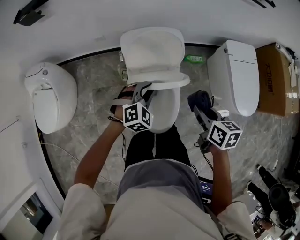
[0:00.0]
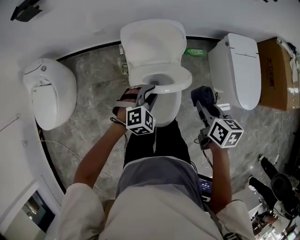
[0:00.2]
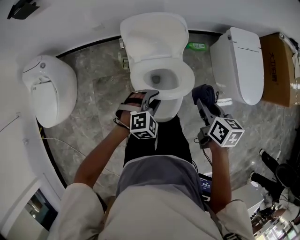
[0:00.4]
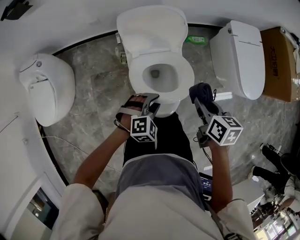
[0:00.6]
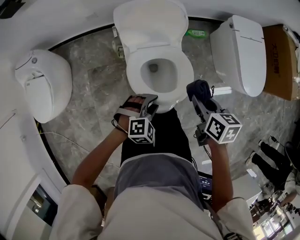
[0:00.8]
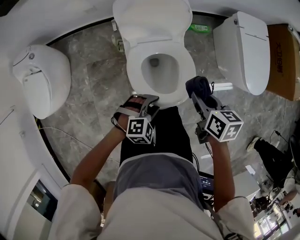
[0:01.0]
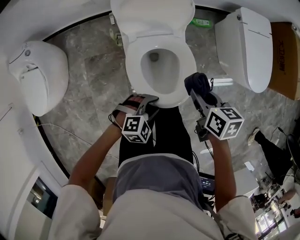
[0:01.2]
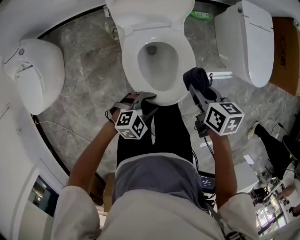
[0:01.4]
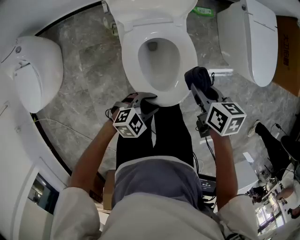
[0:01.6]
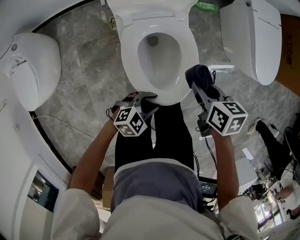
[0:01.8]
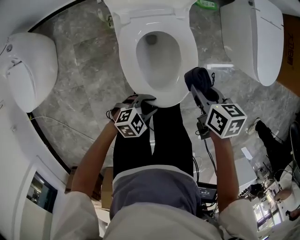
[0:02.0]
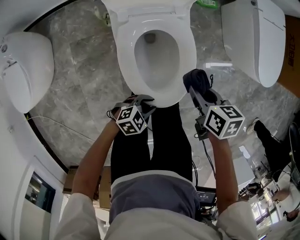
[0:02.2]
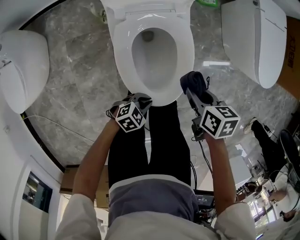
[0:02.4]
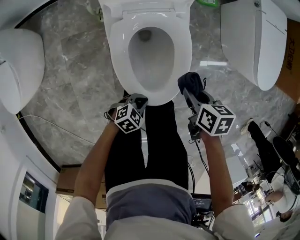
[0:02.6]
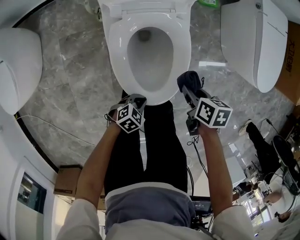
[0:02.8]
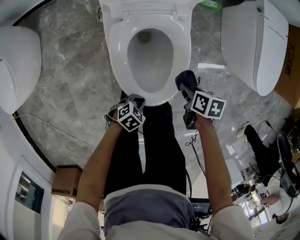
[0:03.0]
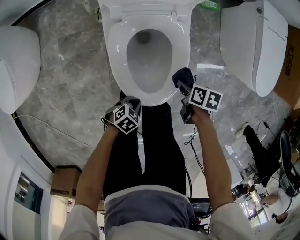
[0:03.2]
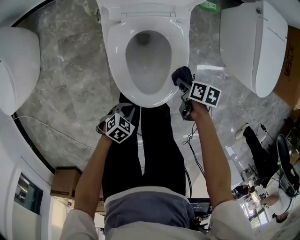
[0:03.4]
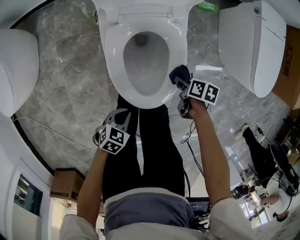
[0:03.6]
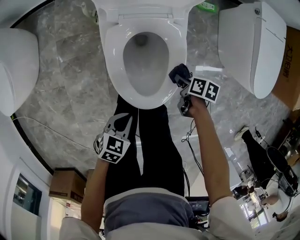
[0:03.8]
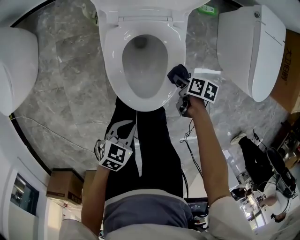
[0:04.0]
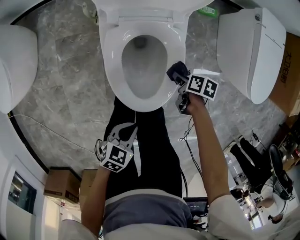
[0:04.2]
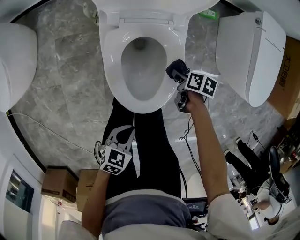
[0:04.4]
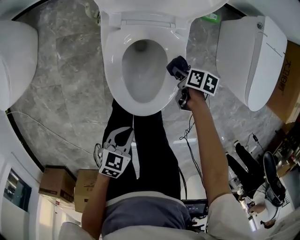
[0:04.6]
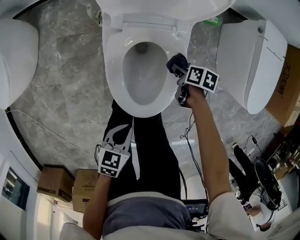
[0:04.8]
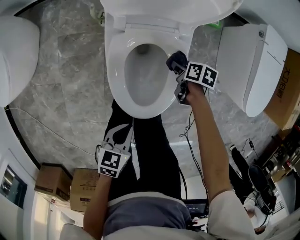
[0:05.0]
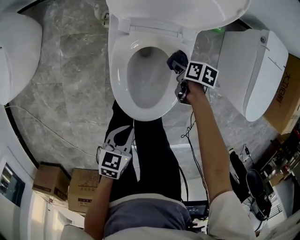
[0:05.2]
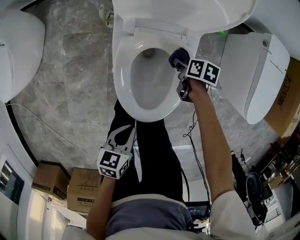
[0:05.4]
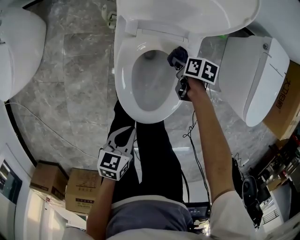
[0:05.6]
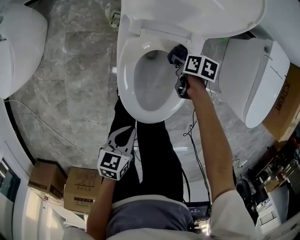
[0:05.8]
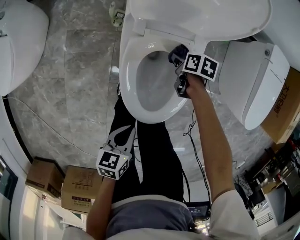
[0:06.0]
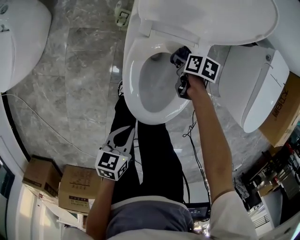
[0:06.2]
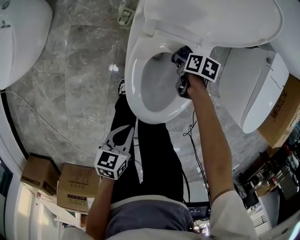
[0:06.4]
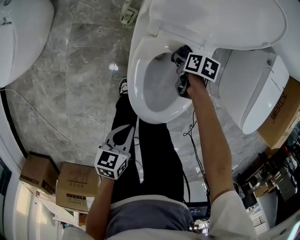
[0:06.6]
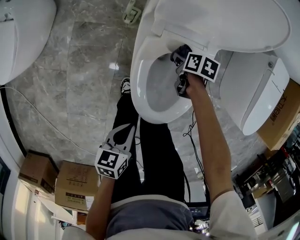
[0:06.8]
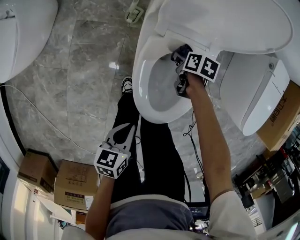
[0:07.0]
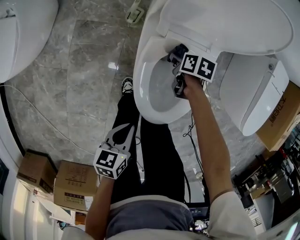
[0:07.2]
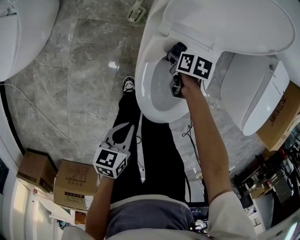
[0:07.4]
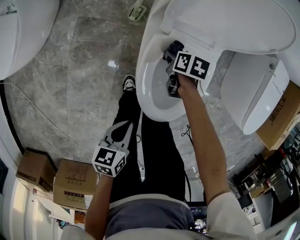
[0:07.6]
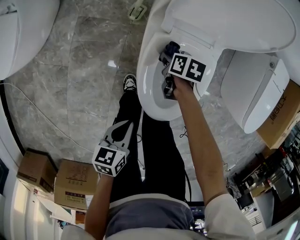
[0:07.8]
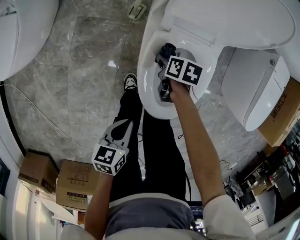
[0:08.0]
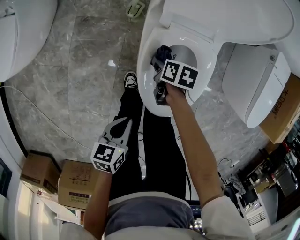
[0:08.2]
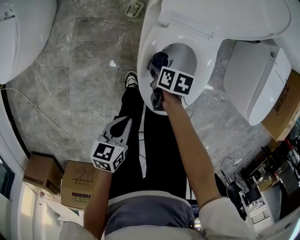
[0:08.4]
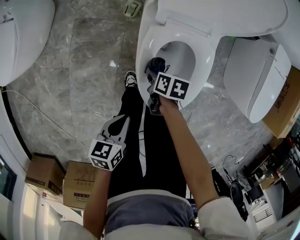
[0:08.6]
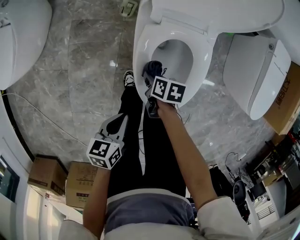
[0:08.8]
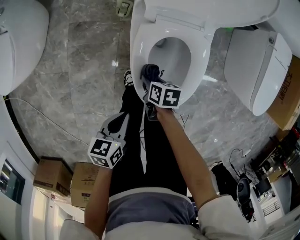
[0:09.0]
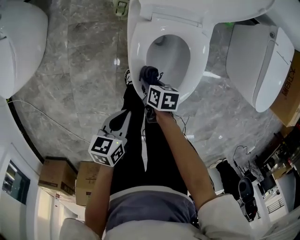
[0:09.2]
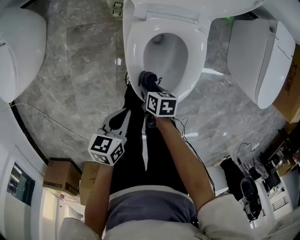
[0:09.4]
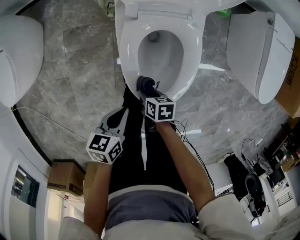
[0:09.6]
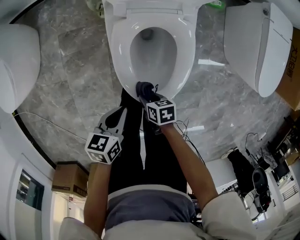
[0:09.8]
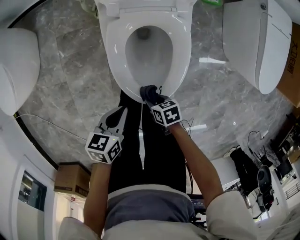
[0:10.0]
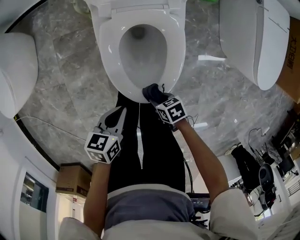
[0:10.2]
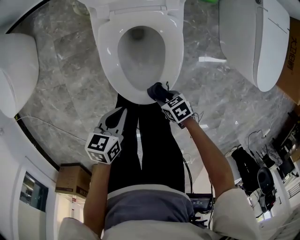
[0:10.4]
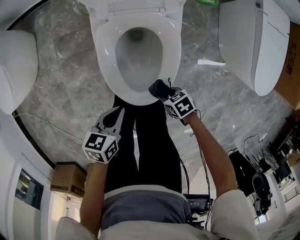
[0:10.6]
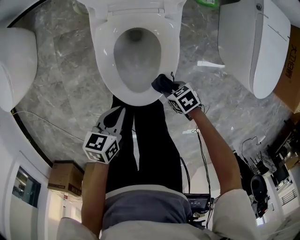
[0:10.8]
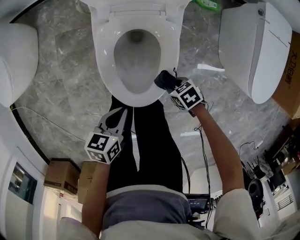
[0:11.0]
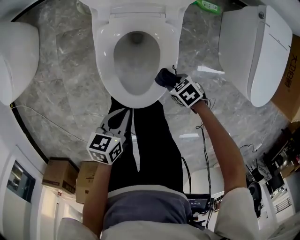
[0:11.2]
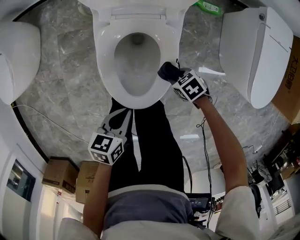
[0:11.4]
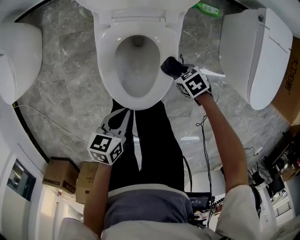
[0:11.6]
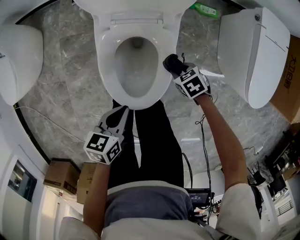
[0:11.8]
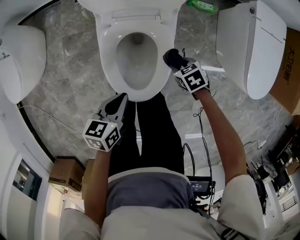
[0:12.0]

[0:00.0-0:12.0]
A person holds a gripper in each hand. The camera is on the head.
0.0 to 1.6 s: The left gripper goes approximately 25 cm backward and downward, and turns by some 40 degrees. The right gripper is displaced downward and backward by roughly 15 cm.
1.6 to 3.0 s: The two grippers go roughly 25 cm downward. The right gripper swivels some 20 degrees. Meanwhile the left gripper changes its angle by about 30 degrees, and closes its fingers.
3.0 to 4.4 s: The left gripper moves upward, some 15 cm, and changes its angle by some 30 degrees. Meanwhile the right gripper moves some 10 cm.
4.4 to 6.0 s: The right gripper moves roughly 15 cm. Meanwhile the left gripper changes place by roughly 10 cm, and rotates roughly 40 degrees.
6.0 to 7.6 s: The right gripper goes roughly 10 cm to the left, while the left gripper moves to the left, roughly 10 cm.
7.6 to 9.0 s: The right gripper moves backward, roughly 15 cm.
9.0 to 10.4 s: The left gripper moves about 10 cm; the right gripper changes place by roughly 20 cm, and changes its angle by roughly 30 degrees.
10.4 to 12.0 s: The left gripper moves approximately 10 cm, while the right gripper ends up some 20 cm from where it was.

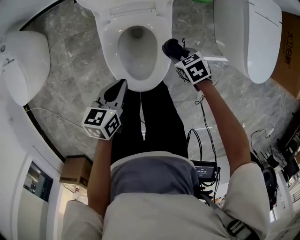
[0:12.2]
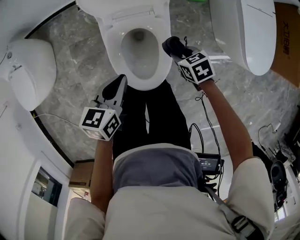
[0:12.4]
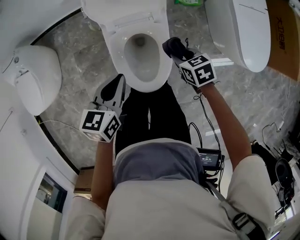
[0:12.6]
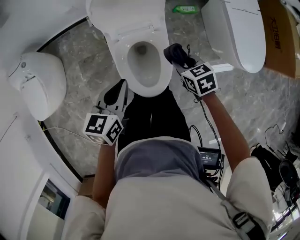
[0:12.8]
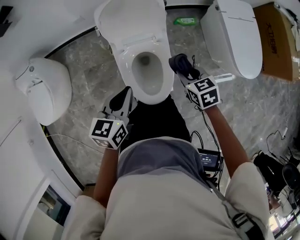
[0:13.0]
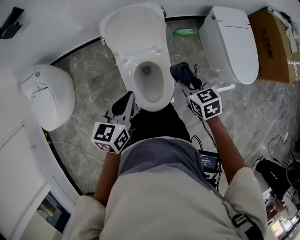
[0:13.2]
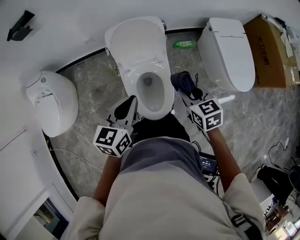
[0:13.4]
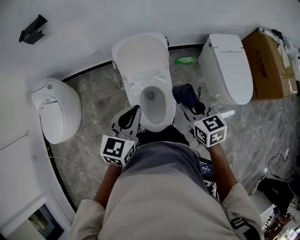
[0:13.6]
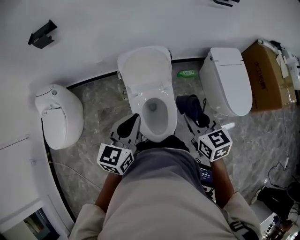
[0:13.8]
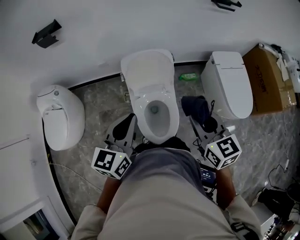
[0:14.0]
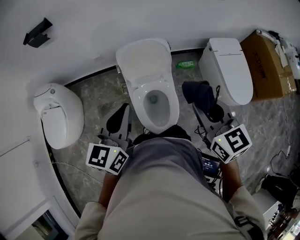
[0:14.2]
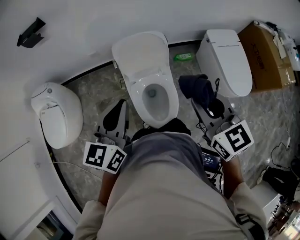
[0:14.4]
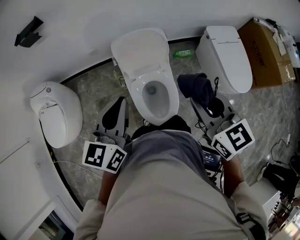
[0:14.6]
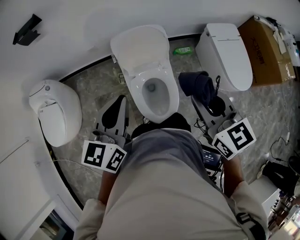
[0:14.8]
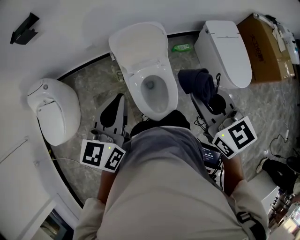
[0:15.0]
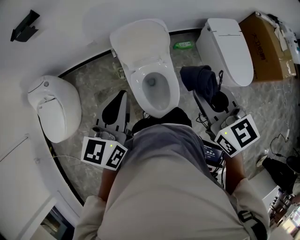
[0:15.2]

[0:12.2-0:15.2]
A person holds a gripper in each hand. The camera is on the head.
12.2 to 13.8 s: Both grippers move upward, about 40 cm. The left gripper swivels some 40 degrees. The right gripper tips its fingers upward by approximately 40 degrees.
13.8 to 15.2 s: The right gripper moves upward, approximately 10 cm. Meanwhile the left gripper heads to the left, covering roughly 5 cm.

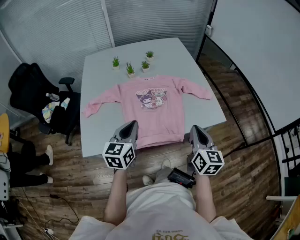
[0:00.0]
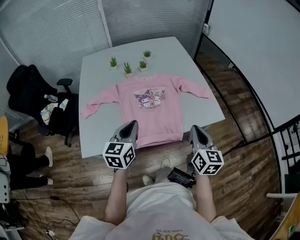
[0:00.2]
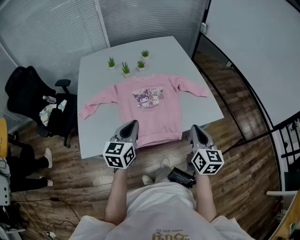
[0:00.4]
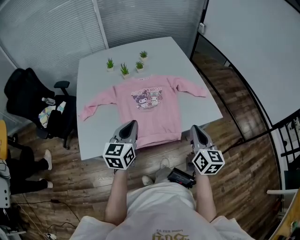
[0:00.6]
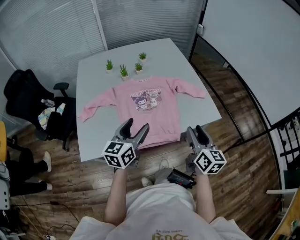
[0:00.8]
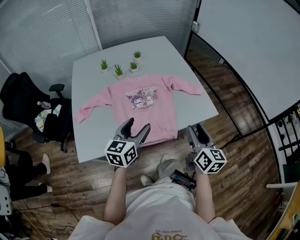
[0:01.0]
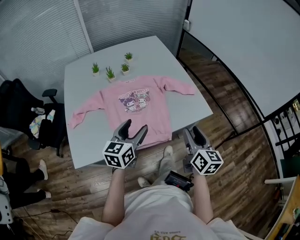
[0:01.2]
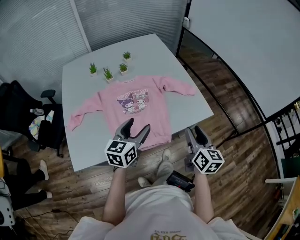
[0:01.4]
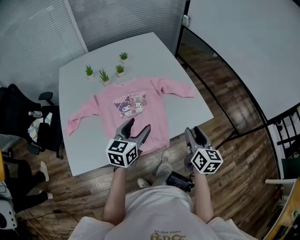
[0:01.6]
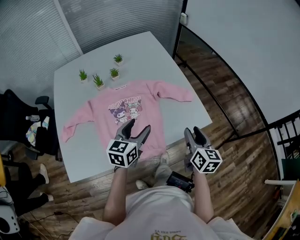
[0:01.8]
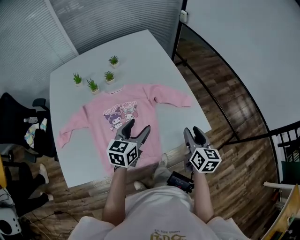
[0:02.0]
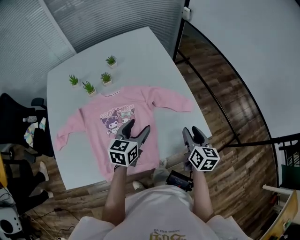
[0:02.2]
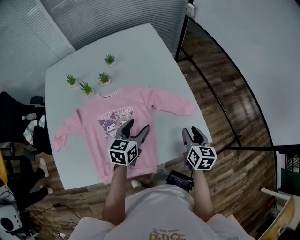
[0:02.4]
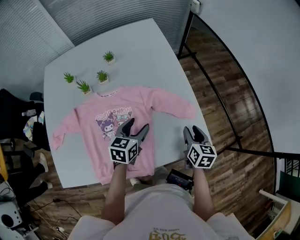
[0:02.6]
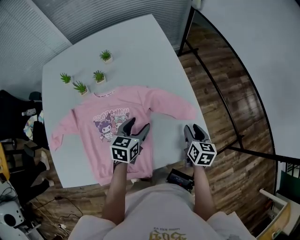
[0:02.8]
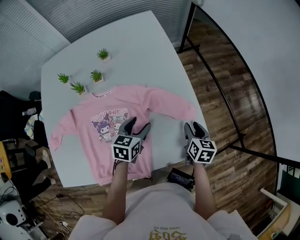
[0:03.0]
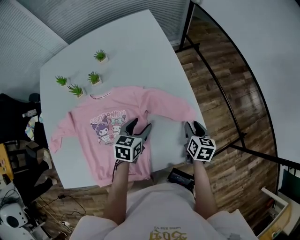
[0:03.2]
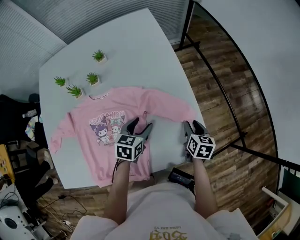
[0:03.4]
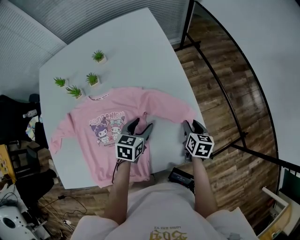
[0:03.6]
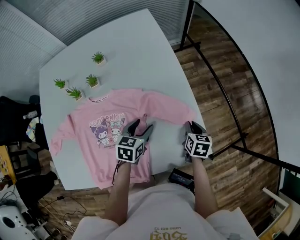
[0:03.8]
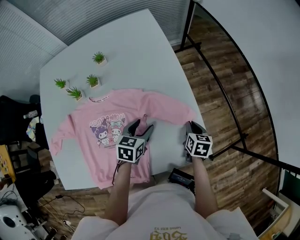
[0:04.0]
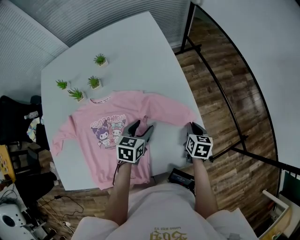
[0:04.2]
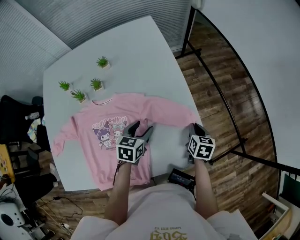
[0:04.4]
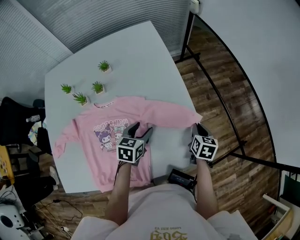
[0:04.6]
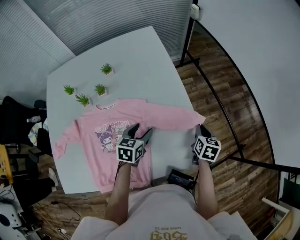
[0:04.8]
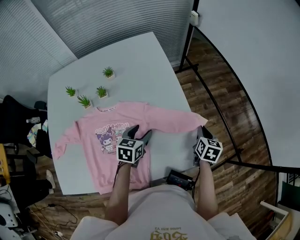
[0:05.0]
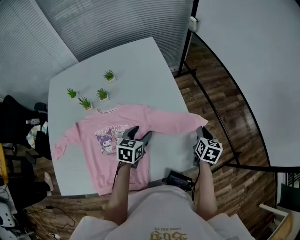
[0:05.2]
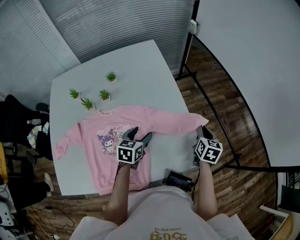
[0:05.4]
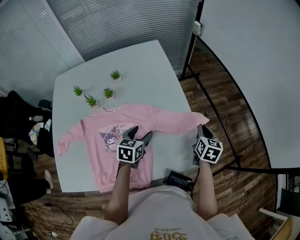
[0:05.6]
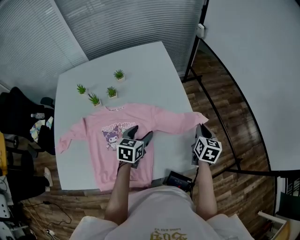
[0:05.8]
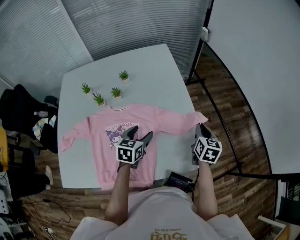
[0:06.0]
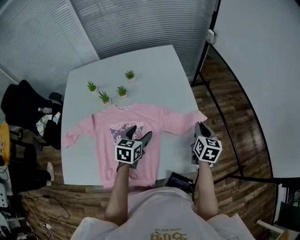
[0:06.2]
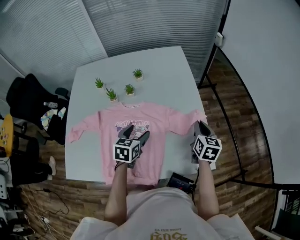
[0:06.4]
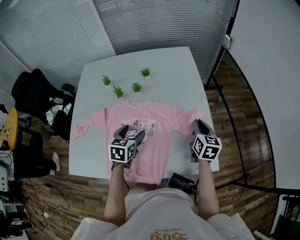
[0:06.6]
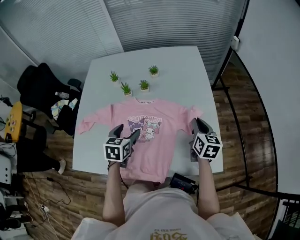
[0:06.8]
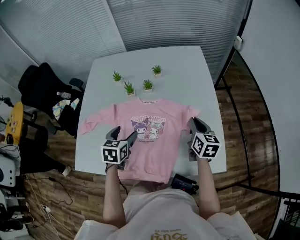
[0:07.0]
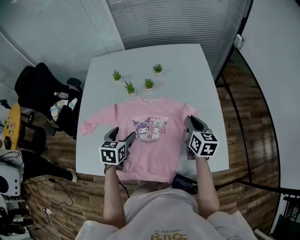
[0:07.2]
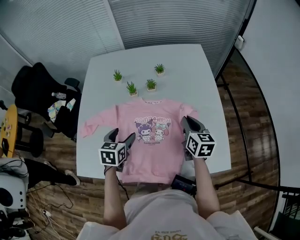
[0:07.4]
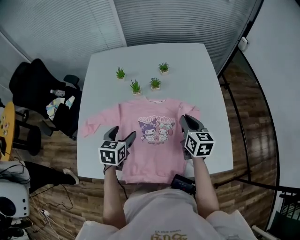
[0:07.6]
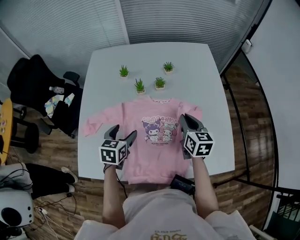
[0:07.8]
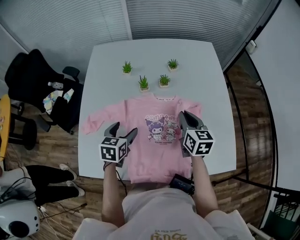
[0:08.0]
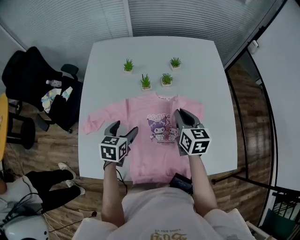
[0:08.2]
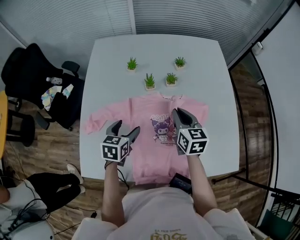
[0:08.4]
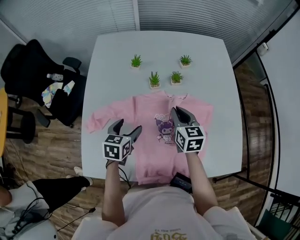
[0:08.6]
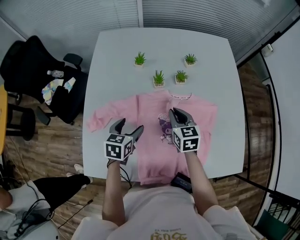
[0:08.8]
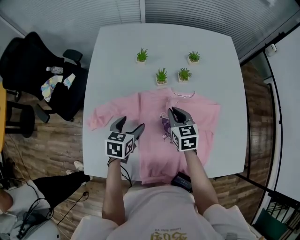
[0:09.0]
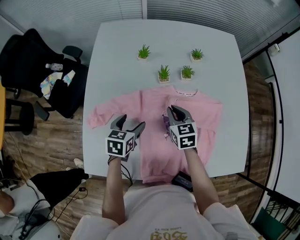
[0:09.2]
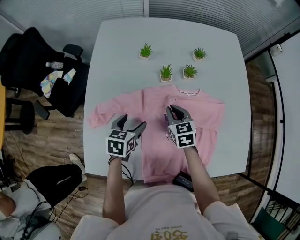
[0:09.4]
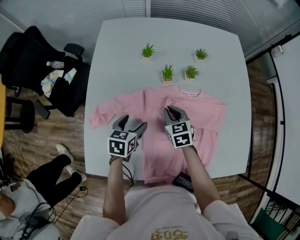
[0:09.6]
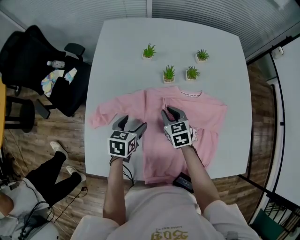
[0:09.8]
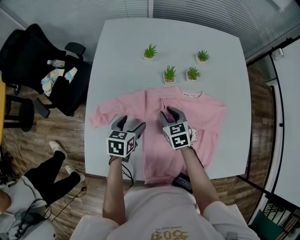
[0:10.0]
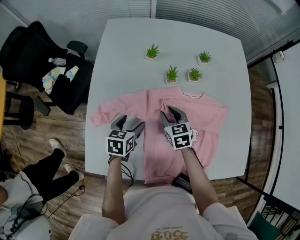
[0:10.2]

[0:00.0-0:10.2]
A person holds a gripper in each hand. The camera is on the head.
0.0 to 1.4 s: The left gripper travels to the right and forward by some 10 cm, and opens. The right gripper moves to the right, approximately 5 cm, and opens.
1.4 to 3.0 s: Both grippers travel together forward and downward, approximately 35 cm. The left gripper rotates about 20 degrees. The right gripper changes its angle by approximately 20 degrees.
3.0 to 4.4 s: The right gripper changes place by roughly 5 cm, and closes up.
4.4 to 5.8 s: The right gripper is displaced upward by about 15 cm. Meanwhile the left gripper is displaced upward by about 5 cm.
5.8 to 7.2 s: The right gripper moves approximately 25 cm, and swivels about 30 degrees, while the left gripper moves approximately 25 cm, and turns by some 20 degrees.
7.2 to 8.8 s: The right gripper is displaced to the left by approximately 25 cm, and changes its angle by some 20 degrees; the left gripper heads to the left, downward and forward, covering approximately 15 cm.
8.8 to 10.2 s: The right gripper heads to the left and downward, covering approximately 10 cm, and opens its fingers, while the left gripper changes place by approximately 5 cm.
